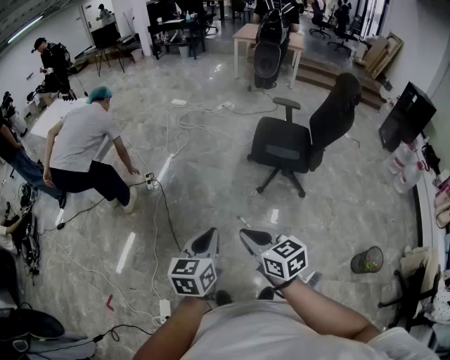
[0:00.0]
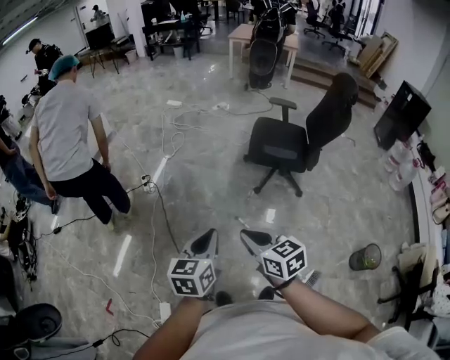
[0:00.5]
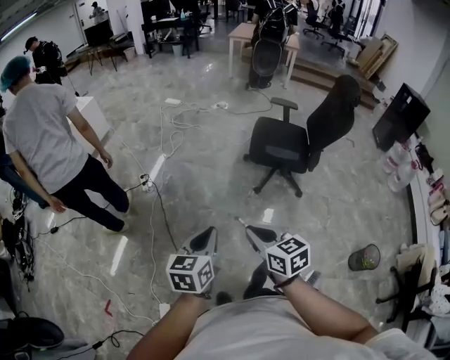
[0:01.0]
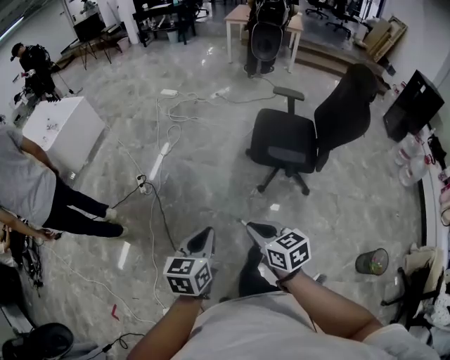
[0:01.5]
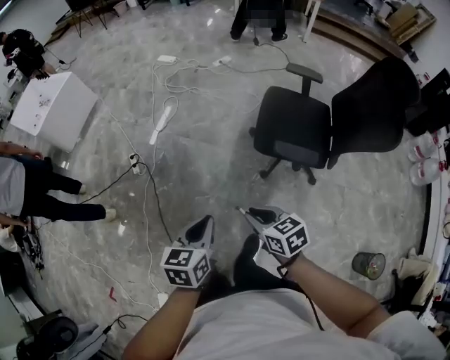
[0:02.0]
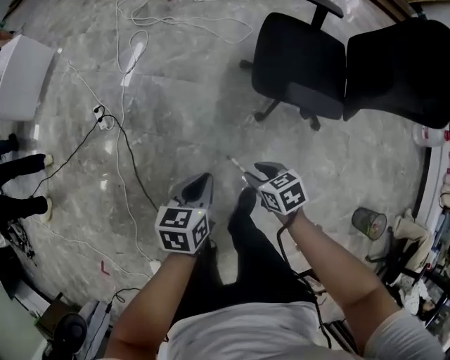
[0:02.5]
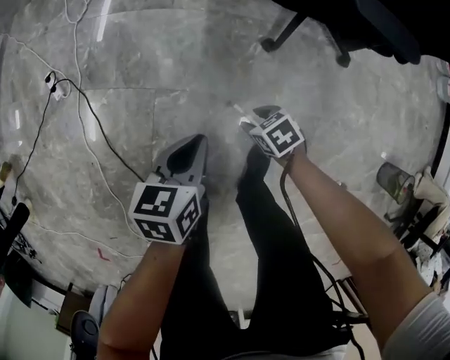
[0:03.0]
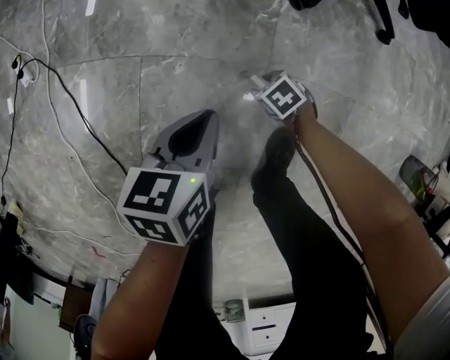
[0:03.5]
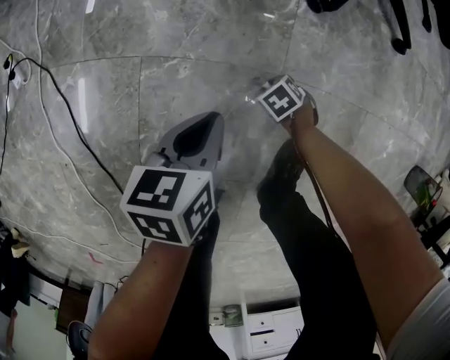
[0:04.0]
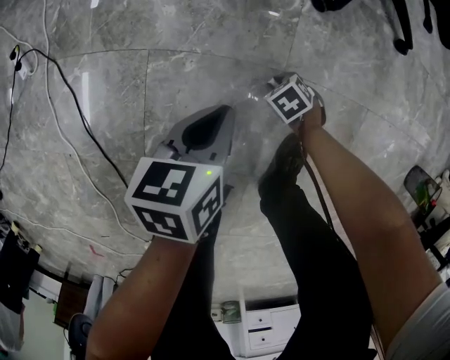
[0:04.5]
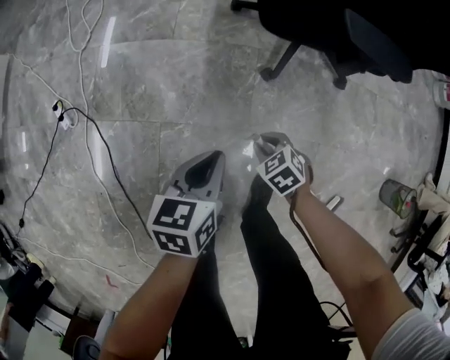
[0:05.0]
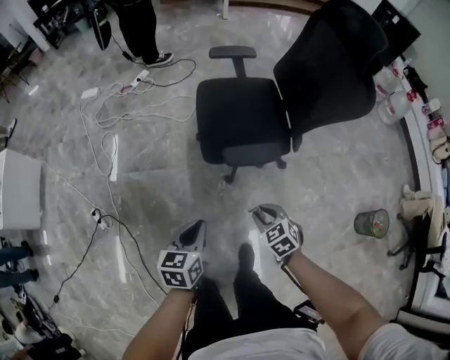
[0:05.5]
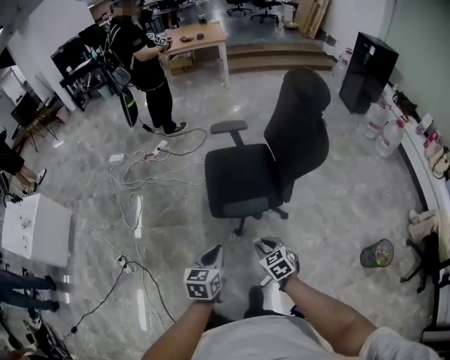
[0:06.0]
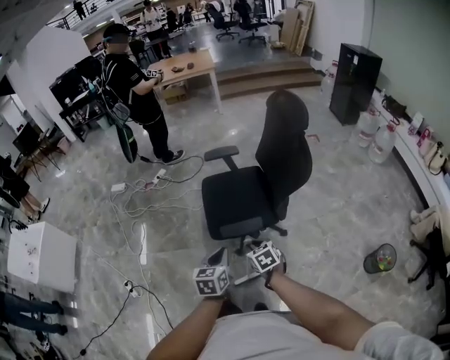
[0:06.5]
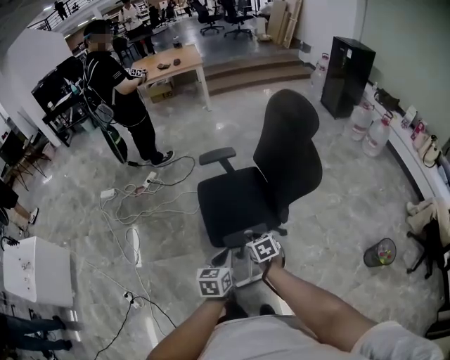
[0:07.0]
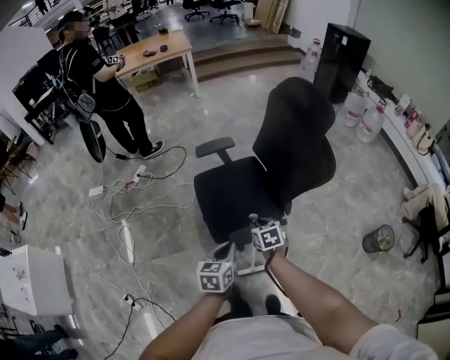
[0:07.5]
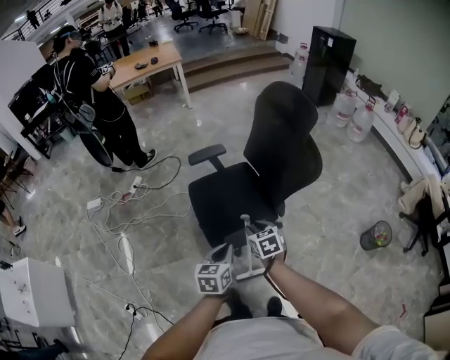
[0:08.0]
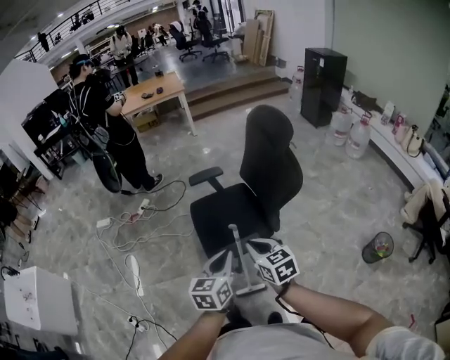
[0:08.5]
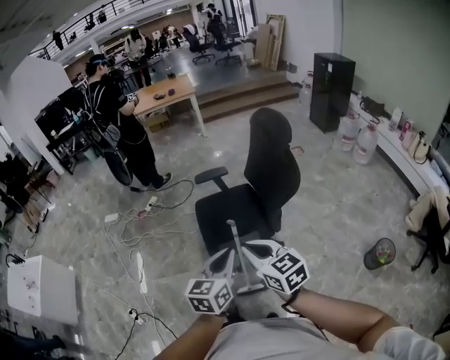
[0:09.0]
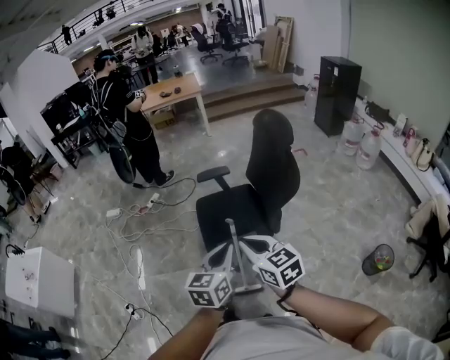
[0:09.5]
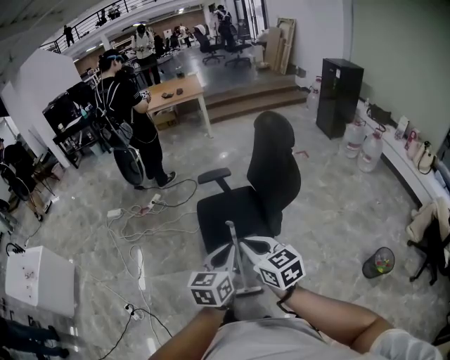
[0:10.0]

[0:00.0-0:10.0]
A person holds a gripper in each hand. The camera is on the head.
0:00.0 to 0:02.0: The two grippers go some 35 cm forward and downward.
0:02.0 to 0:04.0: The two grippers go roughly 80 cm downward. The left gripper turns by approximately 30 degrees; the right gripper points its fingers approximately 40 degrees further downward, and opens.
0:04.0 to 0:06.0: Both grippers travel together upward, some 80 cm. The right gripper tips its fingers upward by roughly 40 degrees, while the left gripper rotates roughly 30 degrees.
0:06.0 to 0:08.0: The two grippers go about 20 cm forward. The right gripper rotates about 30 degrees.
0:08.0 to 0:10.0: The right gripper shifts some 30 cm upward and backward, rotates about 30 degrees, and closes its fingers. The left gripper is displaced upward, backward and to the right by approximately 25 cm.

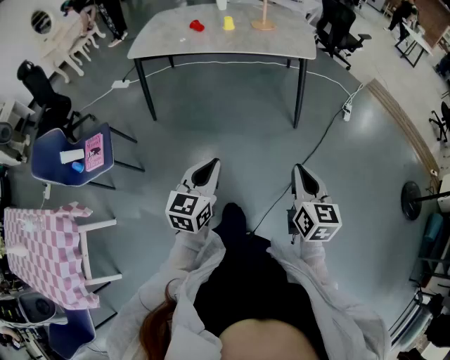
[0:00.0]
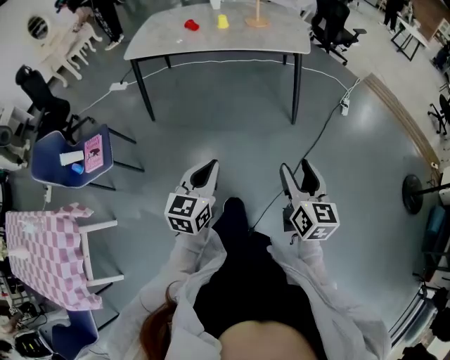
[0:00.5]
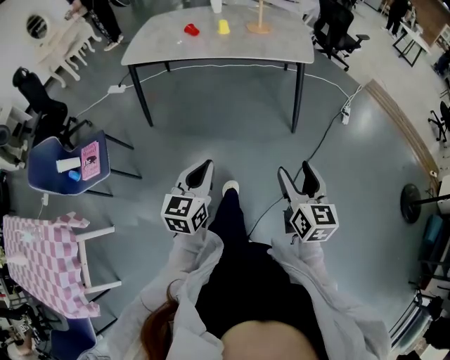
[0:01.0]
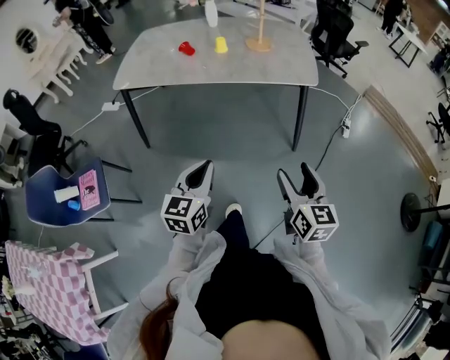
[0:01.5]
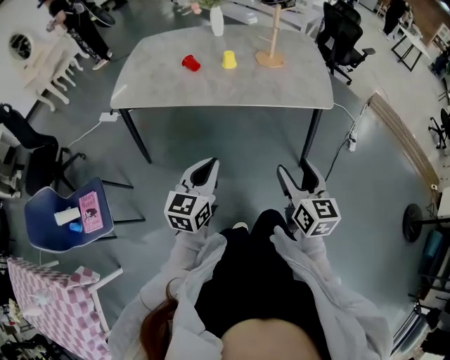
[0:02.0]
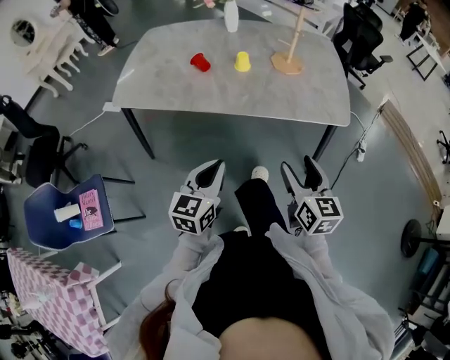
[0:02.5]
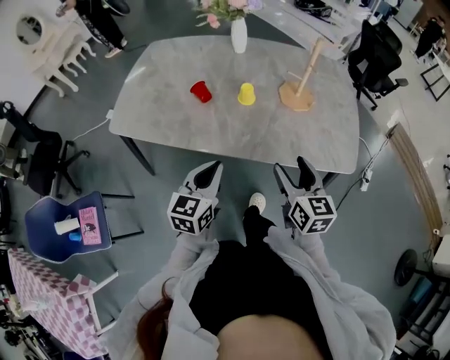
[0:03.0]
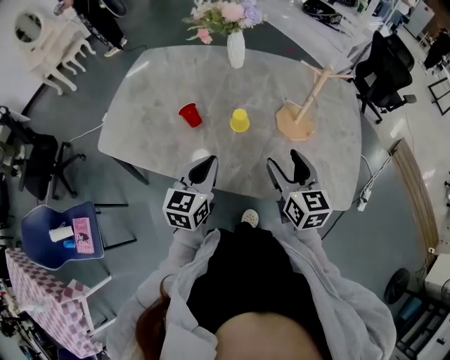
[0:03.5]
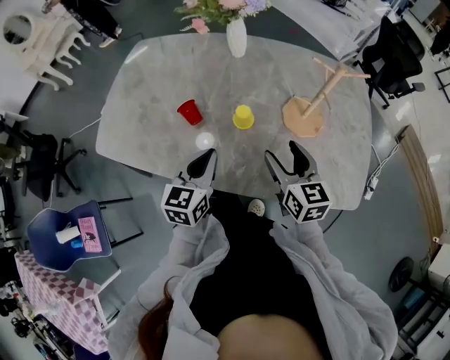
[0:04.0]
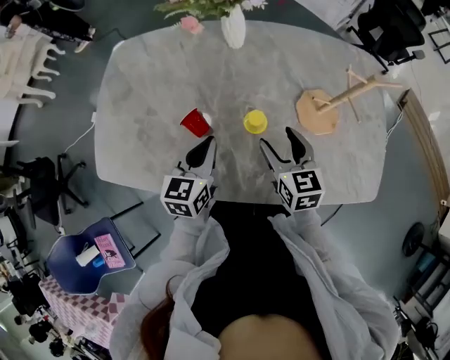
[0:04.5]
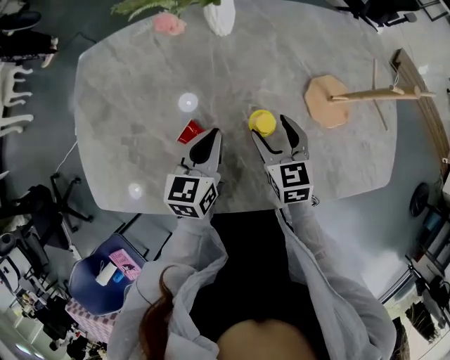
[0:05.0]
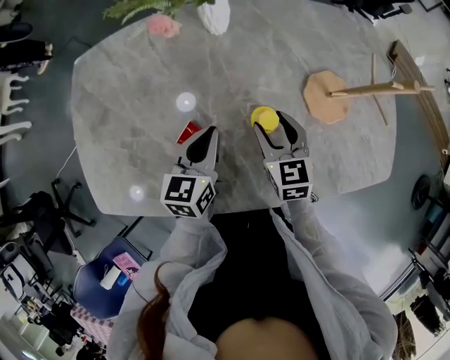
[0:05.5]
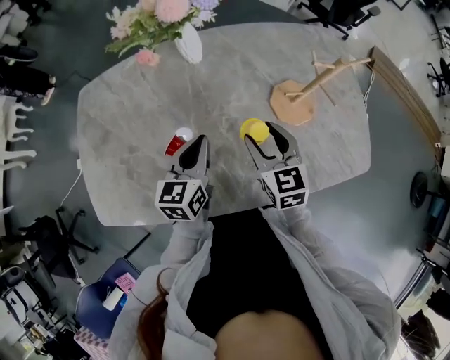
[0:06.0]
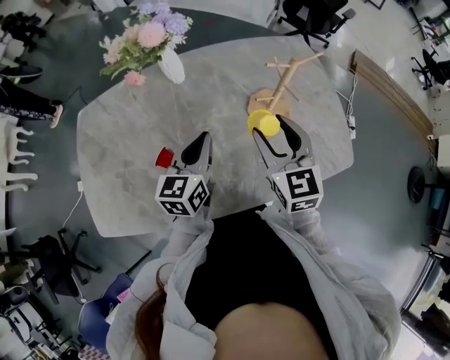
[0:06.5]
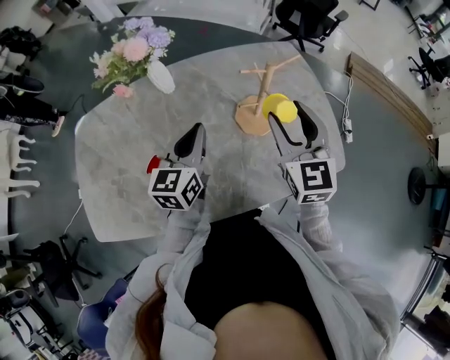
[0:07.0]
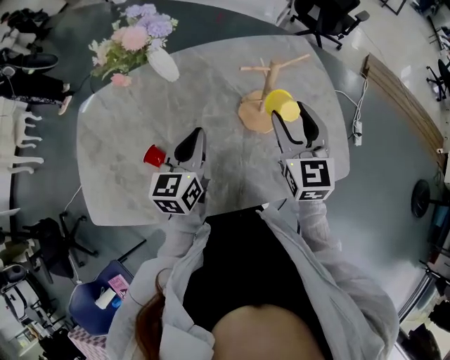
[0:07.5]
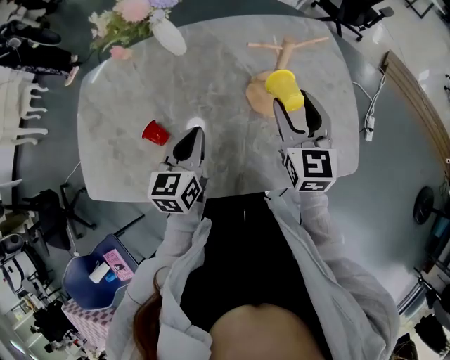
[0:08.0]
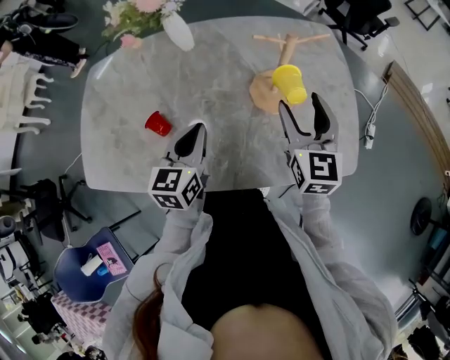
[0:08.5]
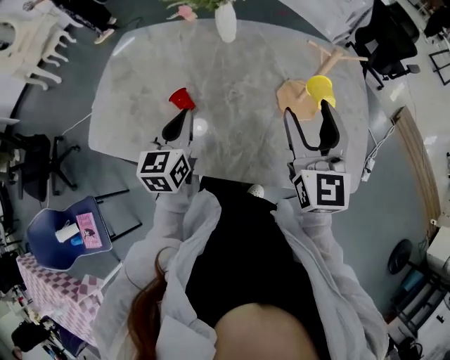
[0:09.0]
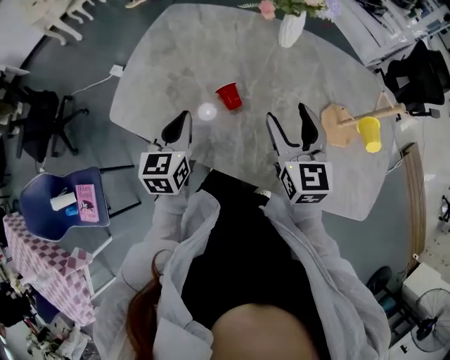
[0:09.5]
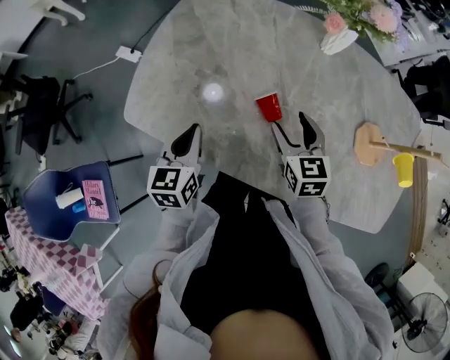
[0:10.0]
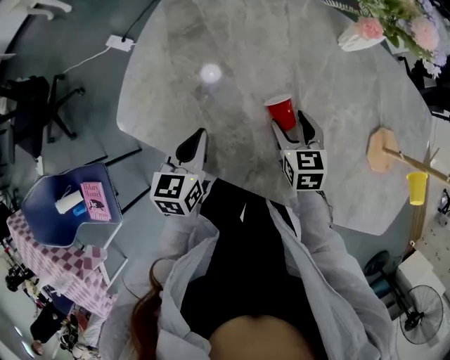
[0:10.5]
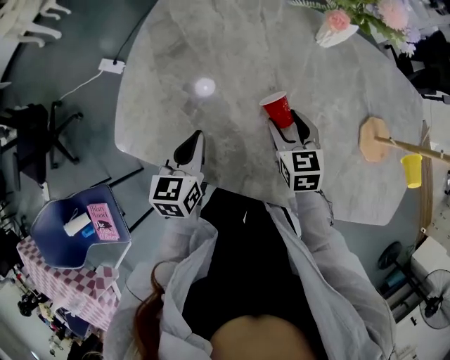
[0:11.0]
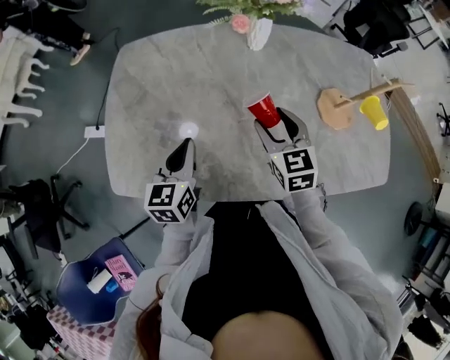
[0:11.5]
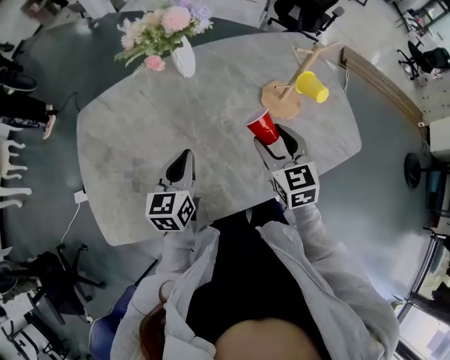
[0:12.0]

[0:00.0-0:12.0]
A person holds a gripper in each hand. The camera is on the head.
0:00.0 to 0:02.0: The grippers both shift forward by some 35 cm. The right gripper opens its fingers.
0:02.0 to 0:04.0: The two grippers travel together, forward, roughly 50 cm.
0:04.0 to 0:06.0: The left gripper goes some 15 cm forward, while the right gripper moves forward and to the left, approximately 10 cm, and rotates roughly 20 degrees.
0:06.0 to 0:08.0: The right gripper heads to the right and upward, covering approximately 20 cm; the left gripper heads to the right, covering some 10 cm.
0:08.0 to 0:10.0: The right gripper changes place by roughly 40 cm, and changes its angle by roughly 40 degrees, while the left gripper ends up roughly 40 cm from where it was, and changes its angle by some 30 degrees.
0:10.0 to 0:12.0: The right gripper shifts by approximately 20 cm, and changes its angle by approximately 30 degrees. The left gripper shifts by some 20 cm, and changes its angle by roughly 40 degrees.

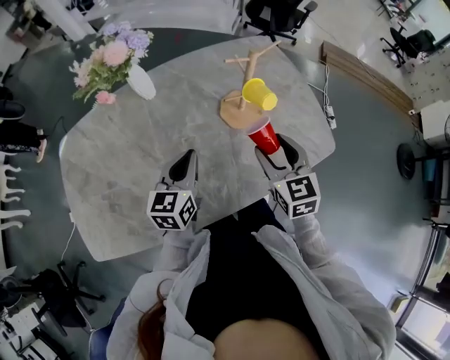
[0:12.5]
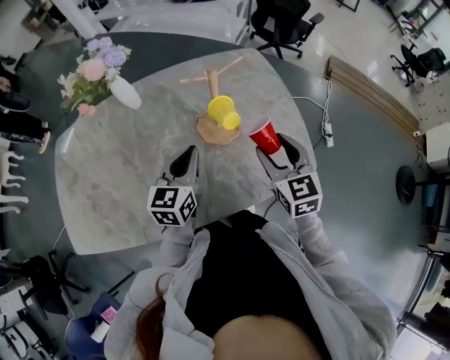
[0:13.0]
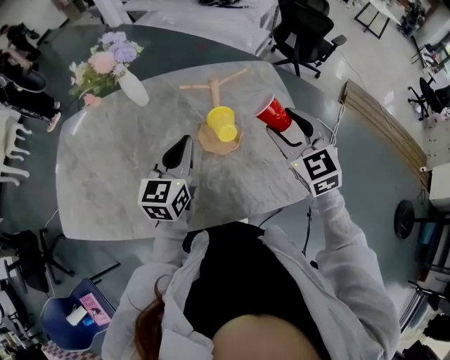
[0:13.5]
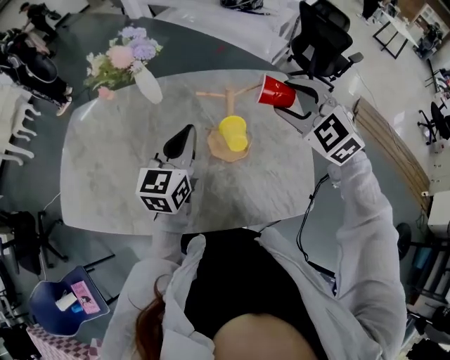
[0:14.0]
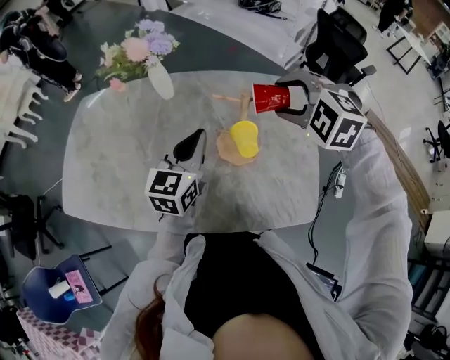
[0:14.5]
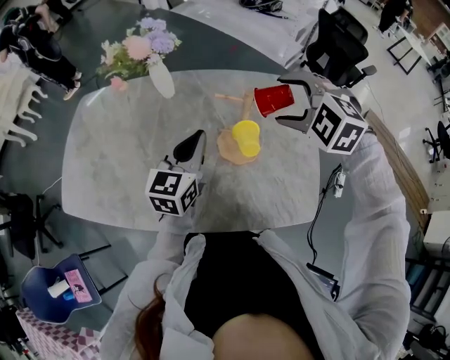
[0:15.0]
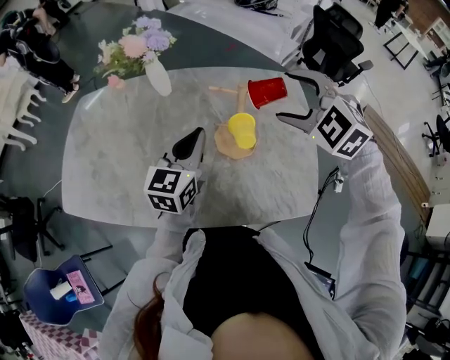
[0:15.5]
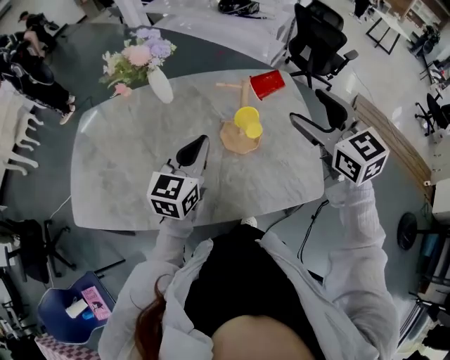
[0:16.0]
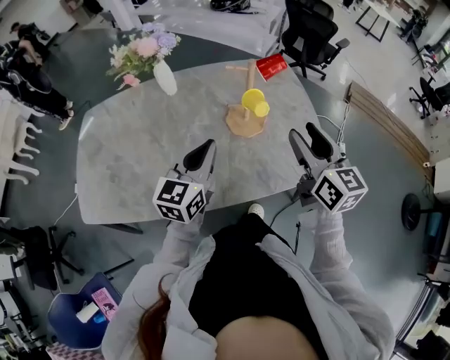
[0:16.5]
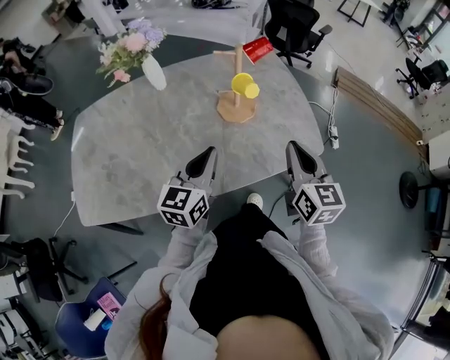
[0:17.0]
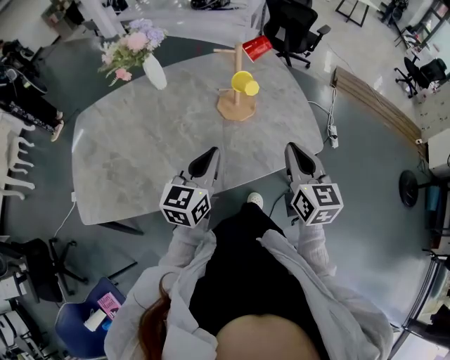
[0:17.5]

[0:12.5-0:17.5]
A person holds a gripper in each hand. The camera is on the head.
0:12.5 to 0:15.0: The left gripper moves roughly 15 cm, while the right gripper changes place by about 25 cm, and rotates around the line of its fingers by roughly 70 degrees, counterclockwise from behind.
0:15.0 to 0:17.5: The right gripper moves some 30 cm, rotates around the line of its fingers by about 80 degrees, clockwise from behind, and closes, while the left gripper ends up roughly 20 cm from where it was, and swivels roughly 20 degrees.
